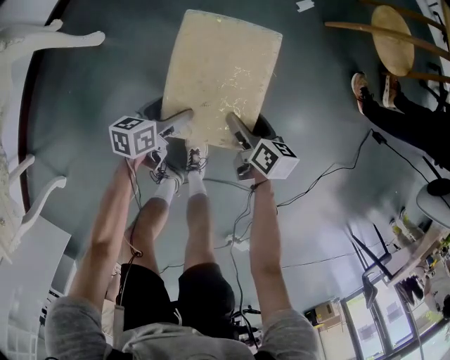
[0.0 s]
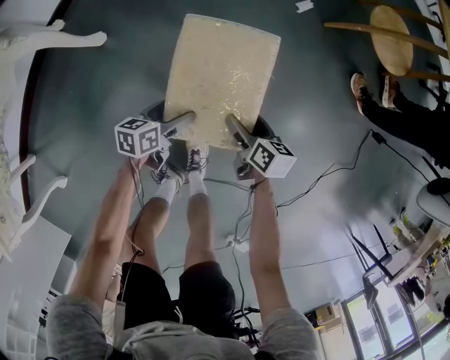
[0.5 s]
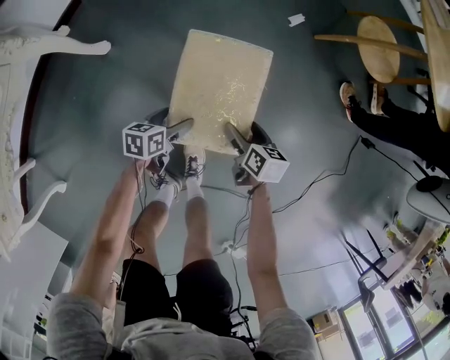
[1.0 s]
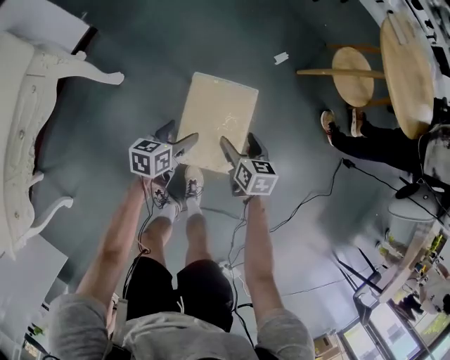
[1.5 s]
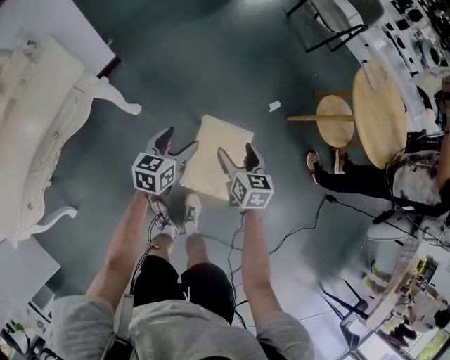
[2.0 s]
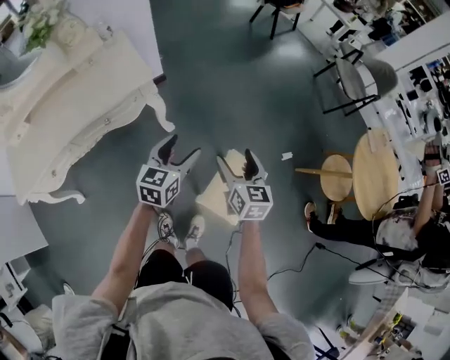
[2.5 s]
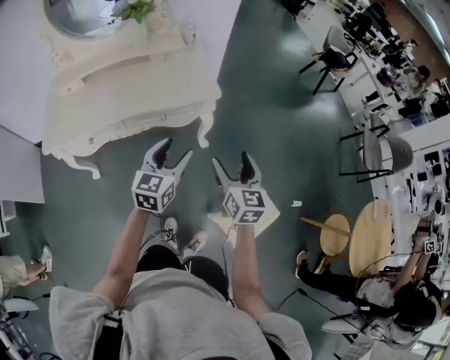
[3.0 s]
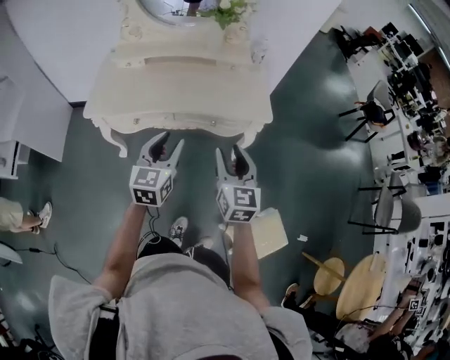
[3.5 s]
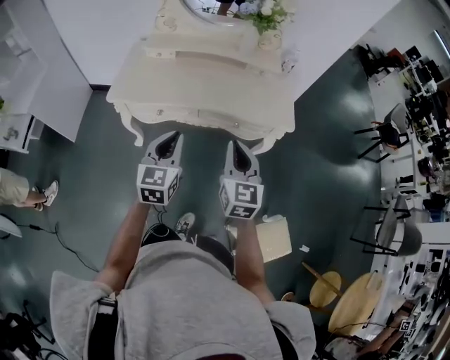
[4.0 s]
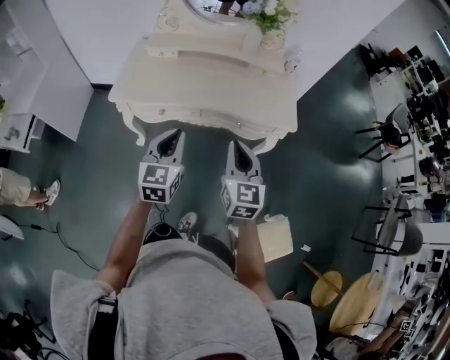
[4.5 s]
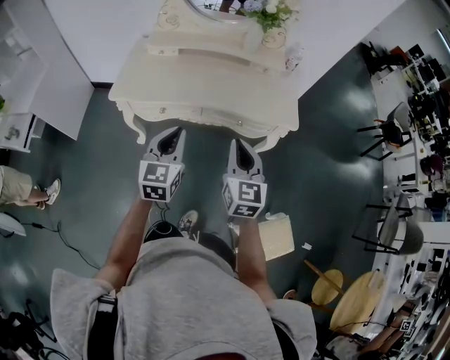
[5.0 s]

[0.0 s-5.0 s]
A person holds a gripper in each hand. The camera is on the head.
0.0 to 2.5 s: The grippers both shift upward by some 50 cm. The left gripper changes its angle by approximately 50 degrees. The right gripper twists some 40 degrees counterclockwise, seen from behind.
2.5 to 5.0 s: The pair of grippers is taken approximately 50 cm. The right gripper rotates approximately 40 degrees, and closes its fingers. Meanwhile the left gripper swivels approximately 50 degrees, and closes its fingers.

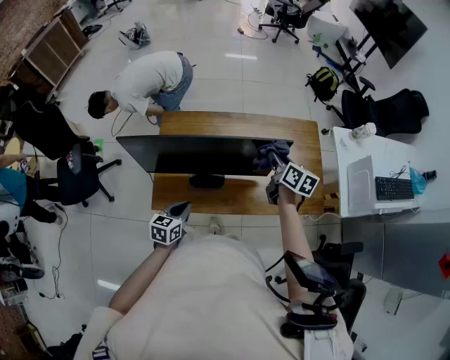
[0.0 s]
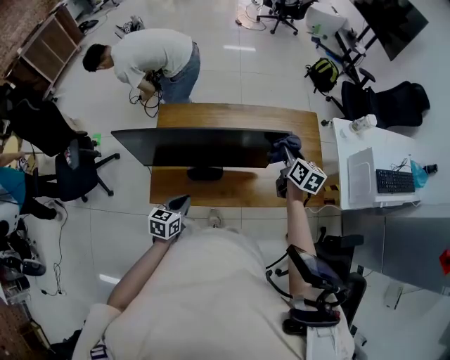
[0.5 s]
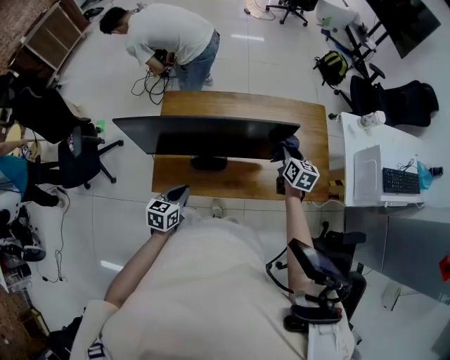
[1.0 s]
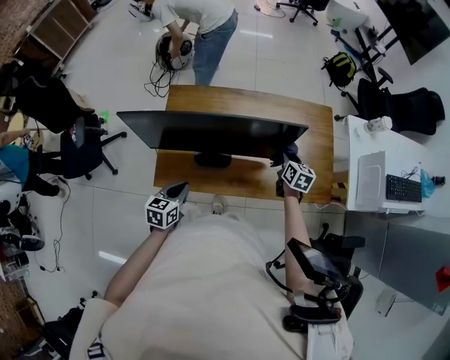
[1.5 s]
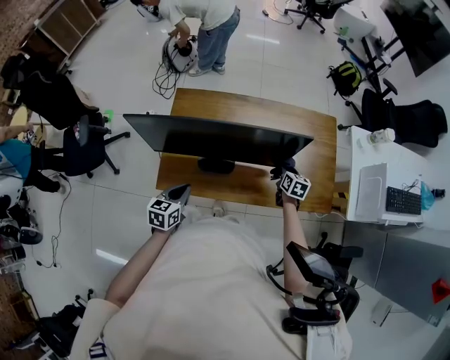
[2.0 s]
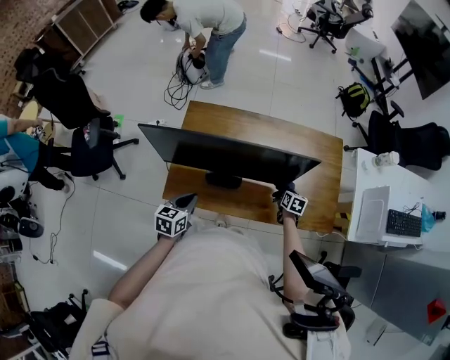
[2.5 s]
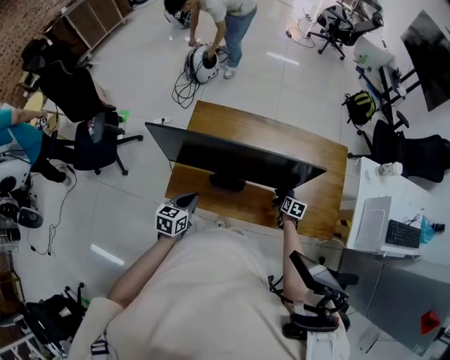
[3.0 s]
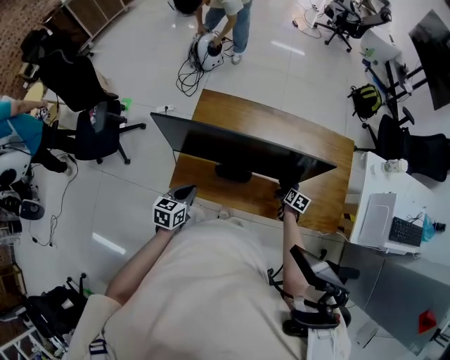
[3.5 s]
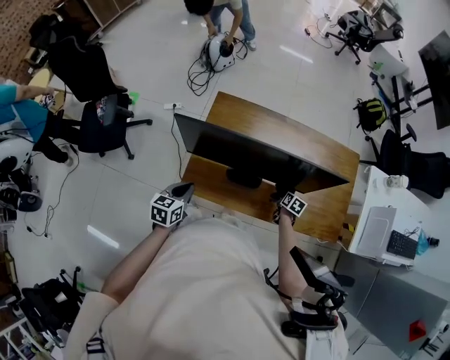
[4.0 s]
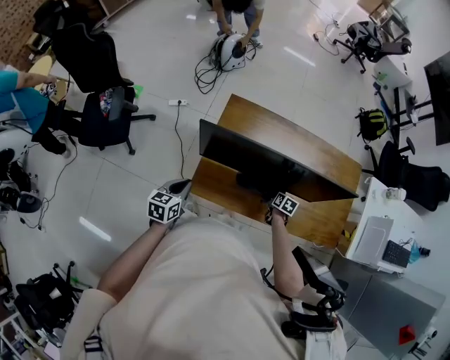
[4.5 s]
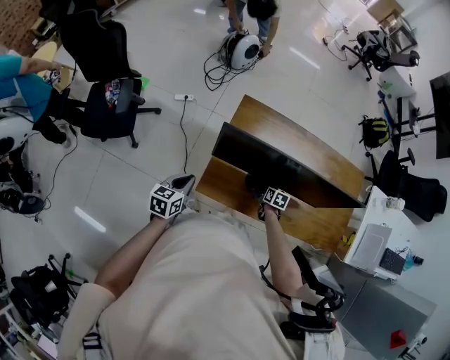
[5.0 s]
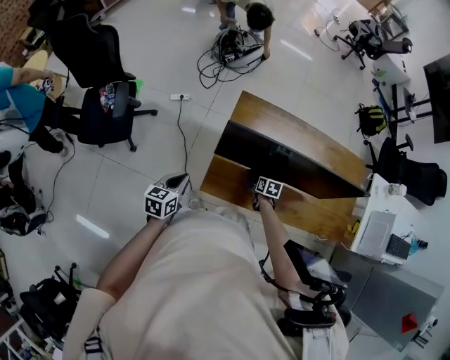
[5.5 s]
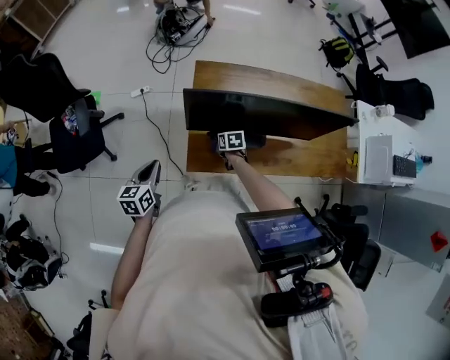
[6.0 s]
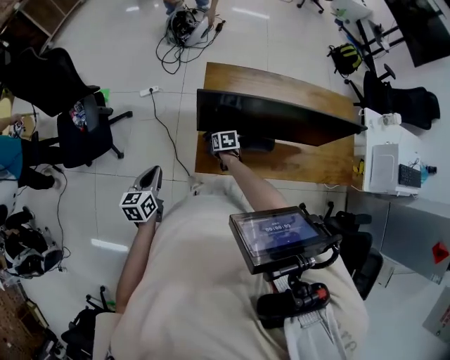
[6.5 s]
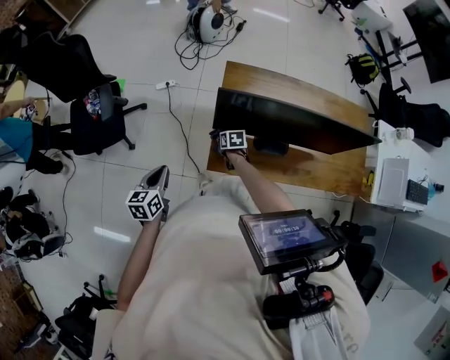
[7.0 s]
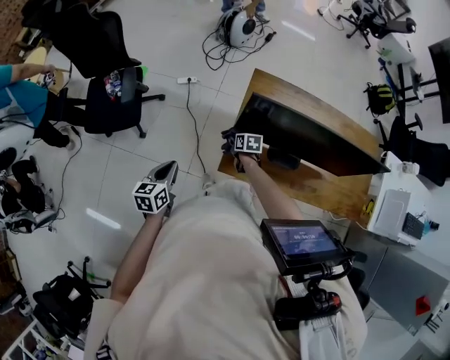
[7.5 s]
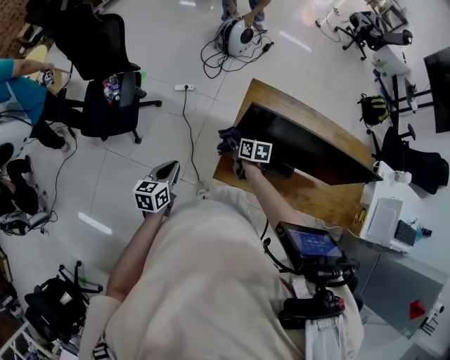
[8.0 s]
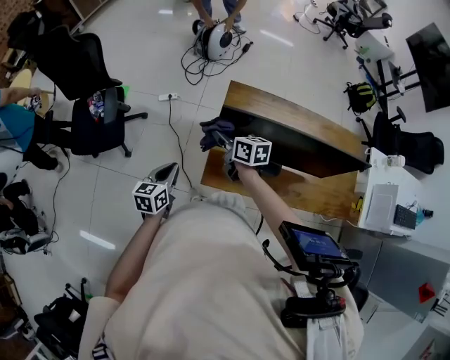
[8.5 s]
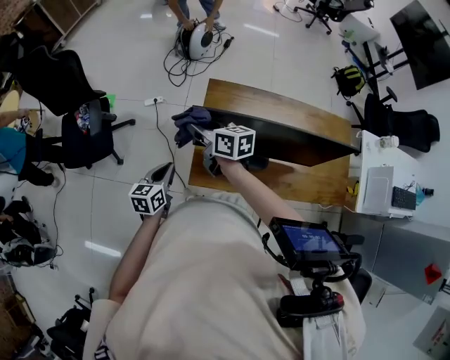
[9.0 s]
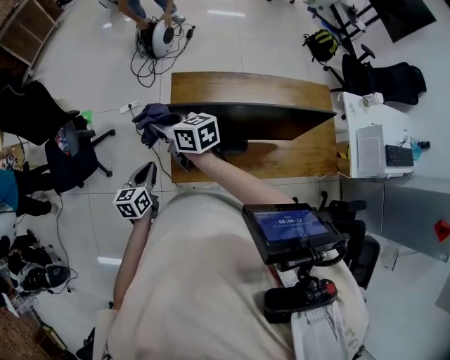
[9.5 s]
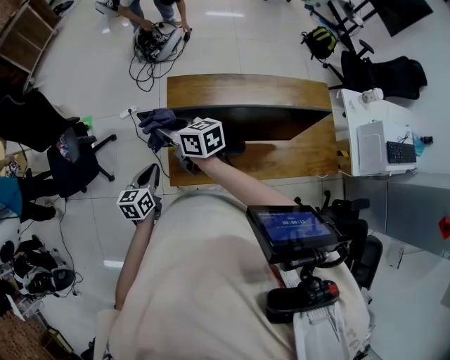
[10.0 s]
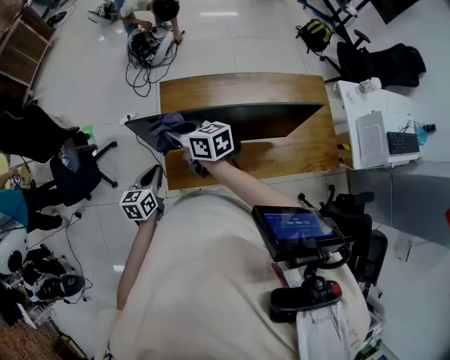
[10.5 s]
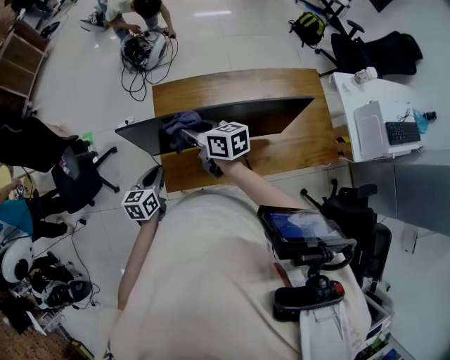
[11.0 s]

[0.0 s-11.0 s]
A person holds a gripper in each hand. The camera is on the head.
0.0 to 2.0 s: The right gripper shifts some 20 cm downward, and swivels approximately 20 degrees.
2.0 to 3.5 s: The right gripper travels downward by about 10 cm.
3.5 to 5.5 s: The left gripper moves to the left, approximately 20 cm, while the right gripper goes approximately 35 cm to the left, and swivels about 20 degrees.
5.5 to 7.5 s: The right gripper shifts approximately 20 cm to the left. The left gripper shifts roughly 10 cm to the left.
7.5 to 9.0 s: The left gripper goes roughly 15 cm to the right and forward, while the right gripper goes some 30 cm upward, and points its fingers some 40 degrees further upward.
9.0 to 11.0 s: The two grippers go about 15 cm to the right.

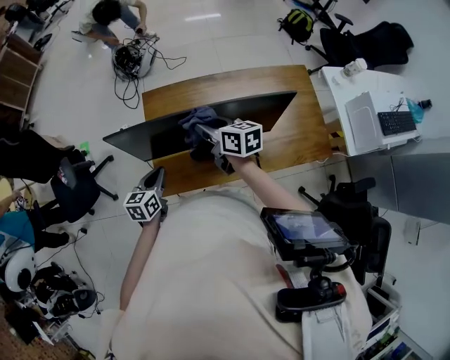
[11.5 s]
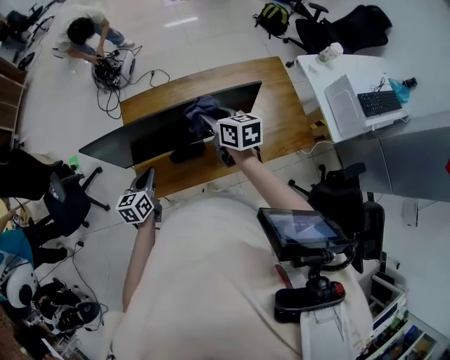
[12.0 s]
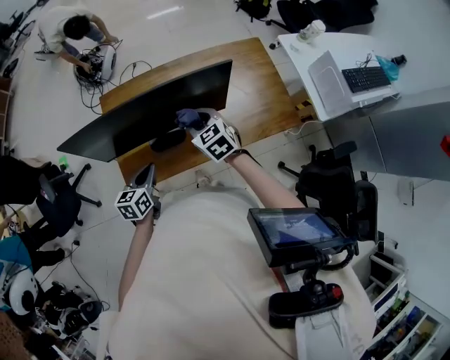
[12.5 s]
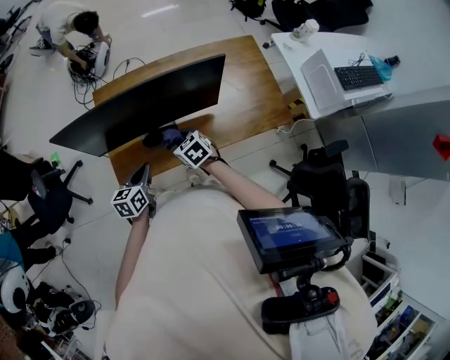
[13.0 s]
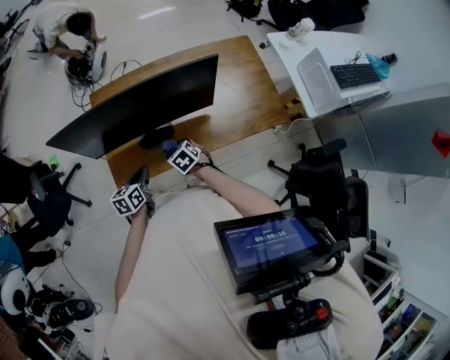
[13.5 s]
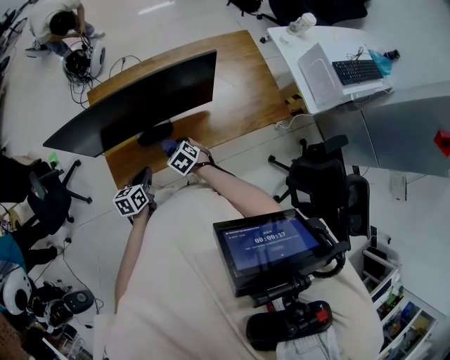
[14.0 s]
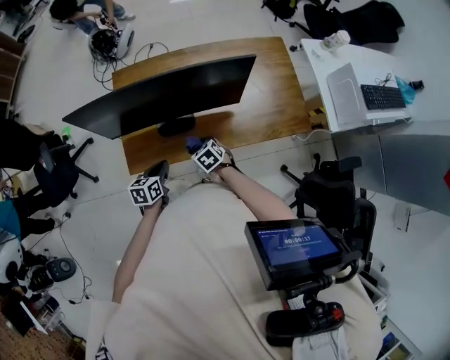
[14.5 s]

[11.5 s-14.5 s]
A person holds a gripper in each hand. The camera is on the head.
11.5 to 13.0 s: The right gripper is displaced downward, backward and to the right by roughly 20 cm, and changes its angle by some 40 degrees; the left gripper heads to the right and backward, covering about 15 cm.
13.0 to 14.5 s: Both grippers travel together downward, some 10 cm.

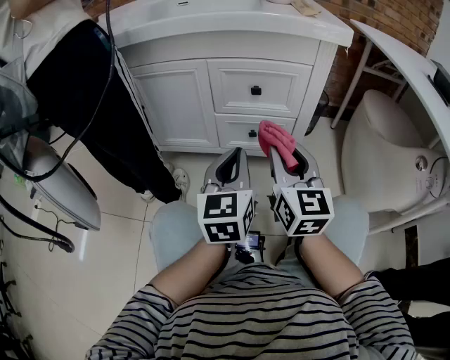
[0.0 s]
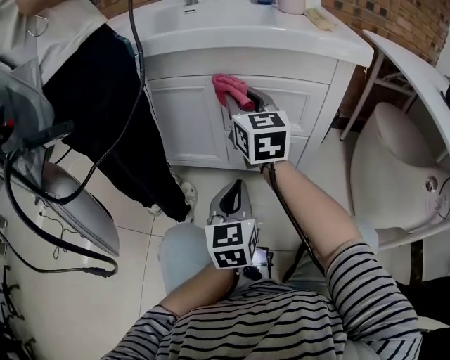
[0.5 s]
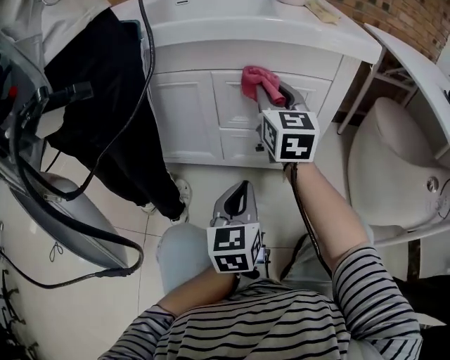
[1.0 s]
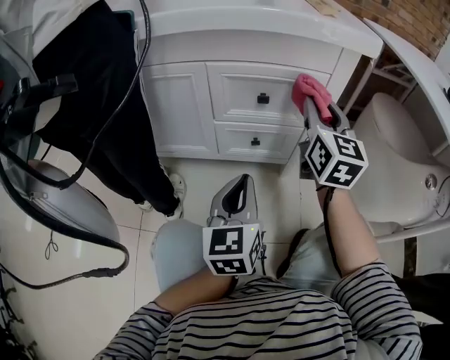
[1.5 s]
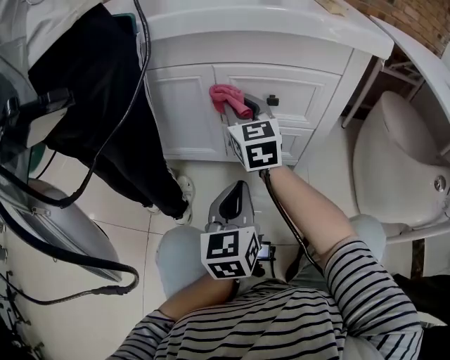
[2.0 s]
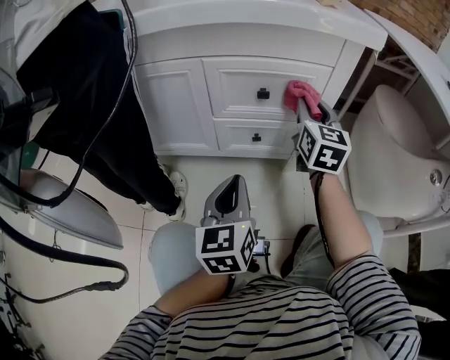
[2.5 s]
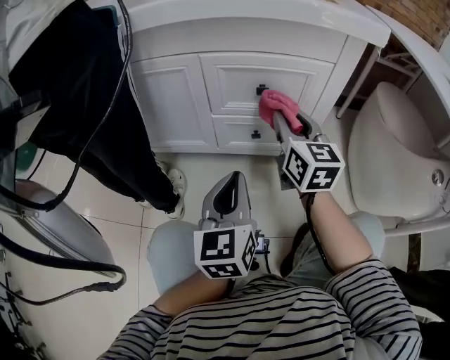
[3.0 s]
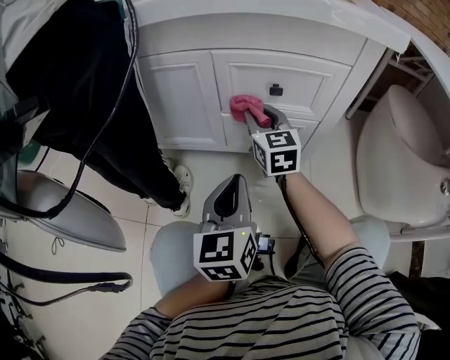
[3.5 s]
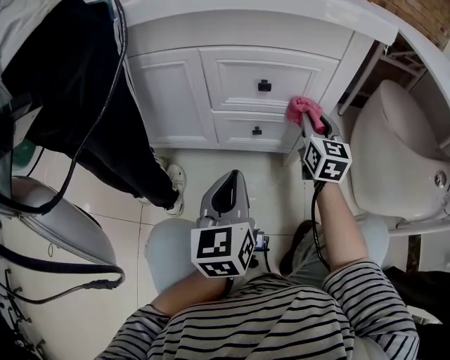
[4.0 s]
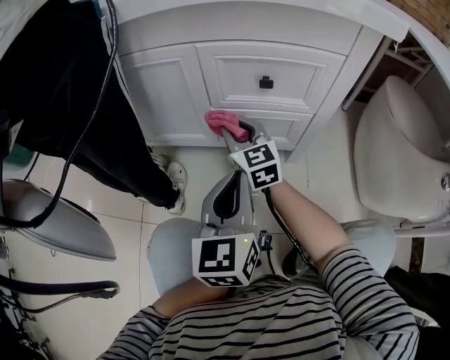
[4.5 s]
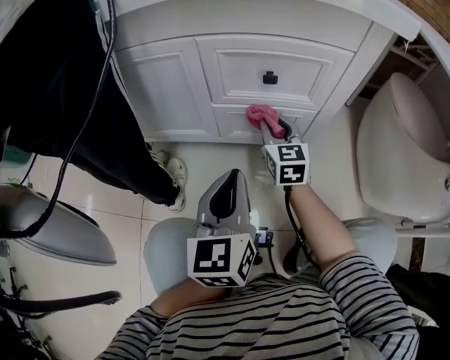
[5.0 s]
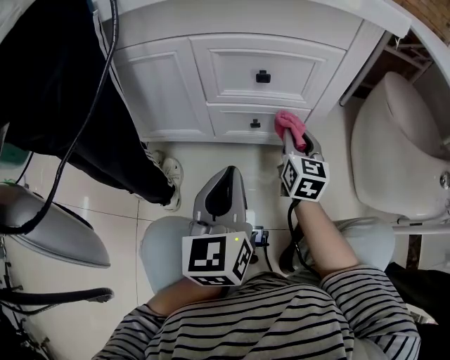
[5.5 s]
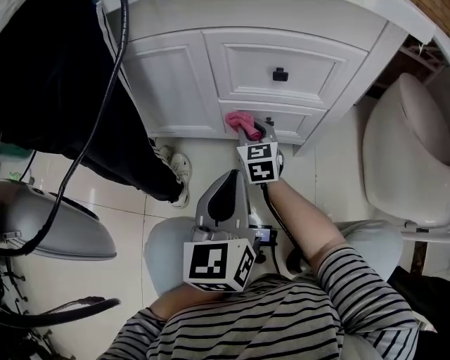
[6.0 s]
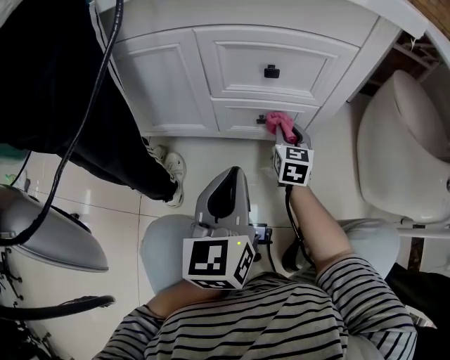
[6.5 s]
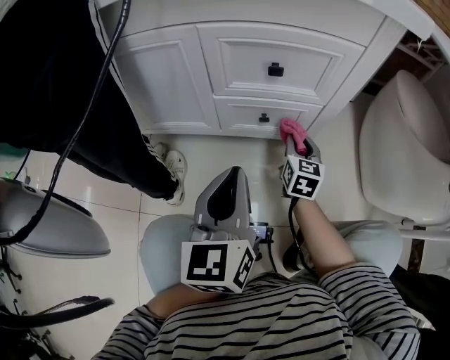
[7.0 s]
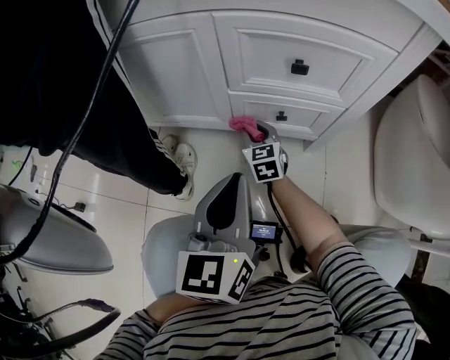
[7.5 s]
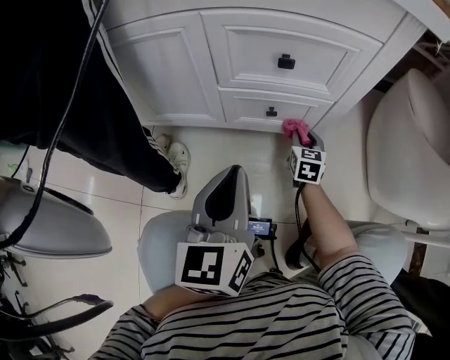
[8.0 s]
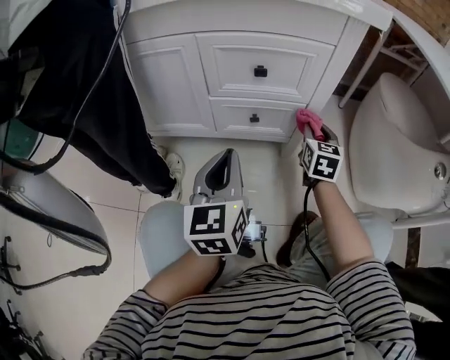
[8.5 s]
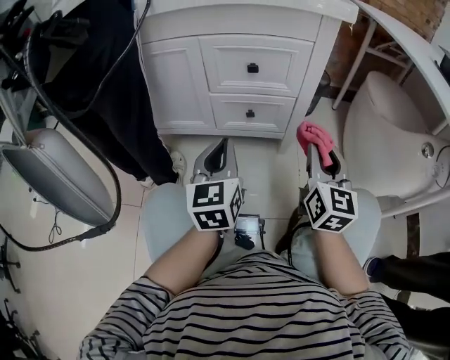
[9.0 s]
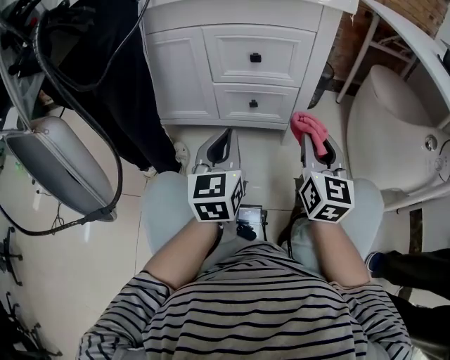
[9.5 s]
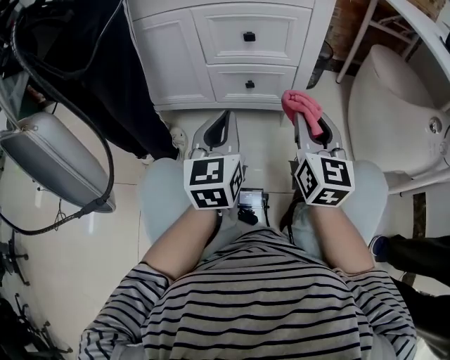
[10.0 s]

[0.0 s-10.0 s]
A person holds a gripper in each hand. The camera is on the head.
0.0 to 2.0 s: The right gripper goes forward and backward, some 20 cm each way, reversing 2 times. Meanwhile the left gripper goes roughly 5 cm downward.
2.0 to 4.0 s: The right gripper moves left and right over roughly 25 cm, changing direction 2 times, and changes its angle by approximately 20 degrees.
4.0 to 6.0 s: The right gripper swings left and right, about 25 cm each way, with 2 reversals.
6.0 to 8.0 s: The right gripper moves left and right over approximately 20 cm, changing direction 2 times.
8.0 to 10.0 s: The right gripper heads upward and backward, covering about 35 cm, and changes its angle by some 30 degrees.
